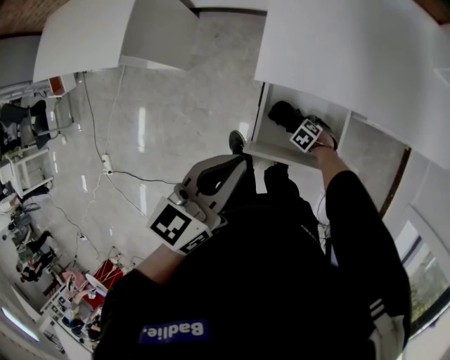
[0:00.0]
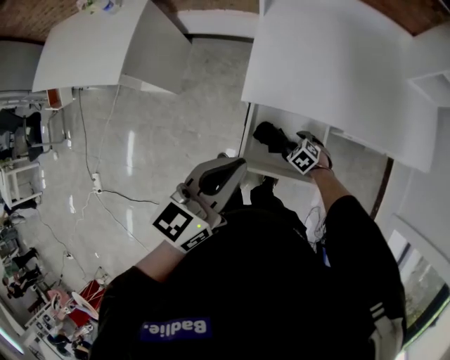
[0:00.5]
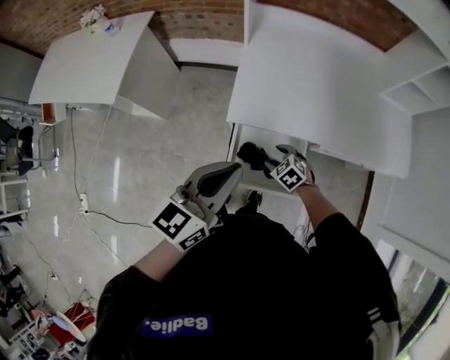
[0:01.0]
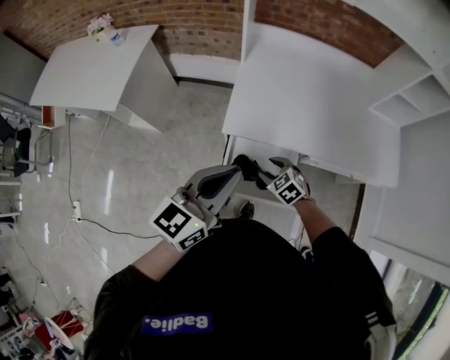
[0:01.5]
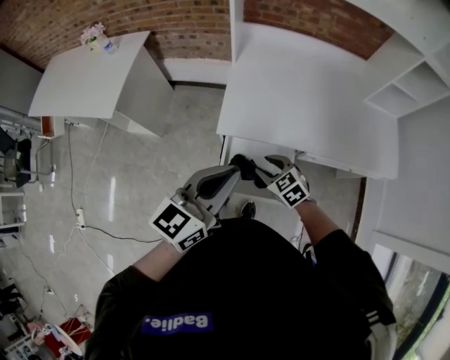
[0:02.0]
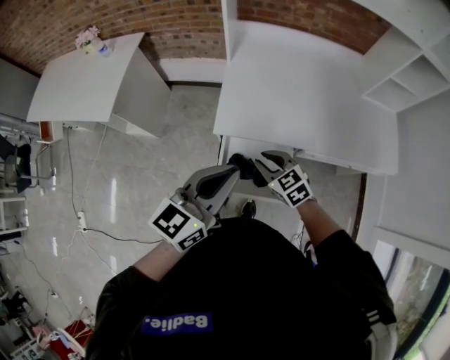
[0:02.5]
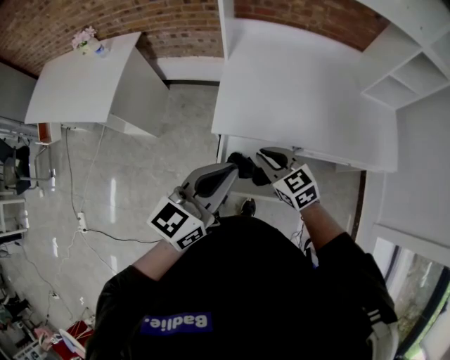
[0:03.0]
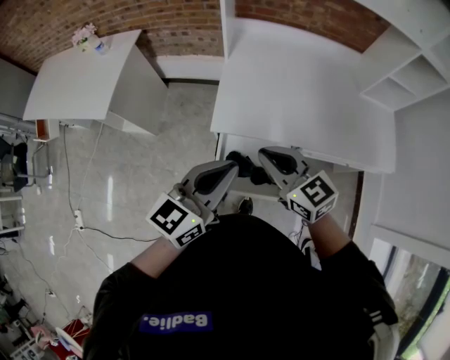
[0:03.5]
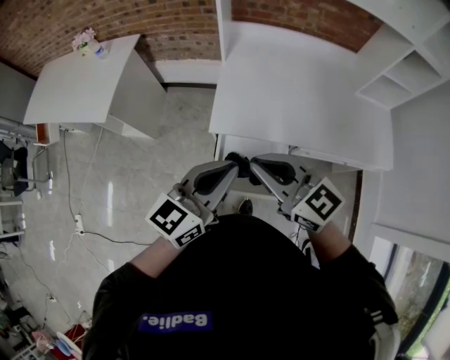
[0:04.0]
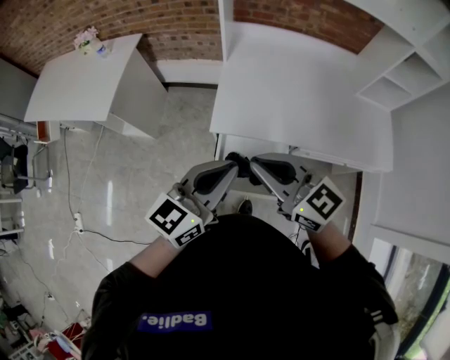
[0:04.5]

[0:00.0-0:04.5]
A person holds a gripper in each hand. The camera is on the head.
0:00.0 to 0:02.0: The left gripper moves upward, about 10 cm. Meanwhile the right gripper heads upward, covering approximately 30 cm, and points its fingers approximately 40 degrees further upward.
0:02.0 to 0:04.5: The right gripper is displaced upward by some 25 cm, tilts its fingers about 40 degrees upward, and closes up.

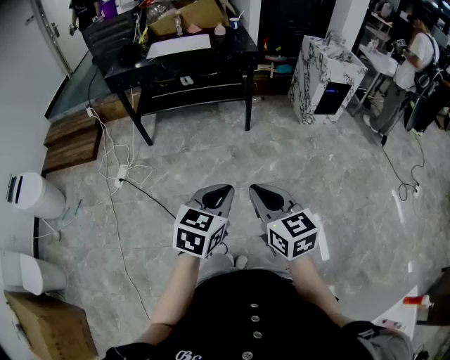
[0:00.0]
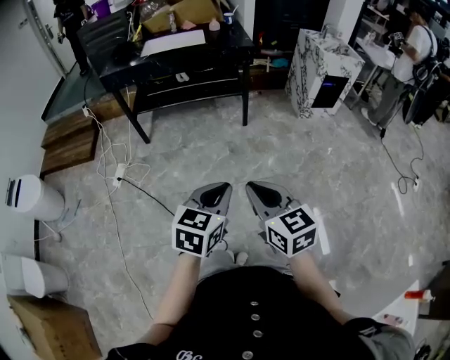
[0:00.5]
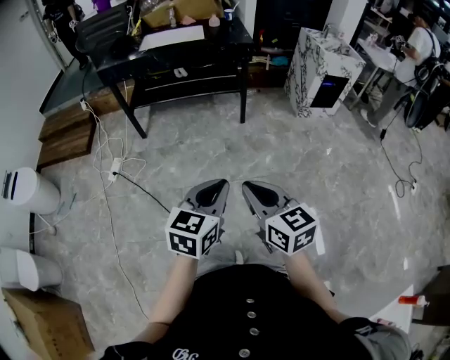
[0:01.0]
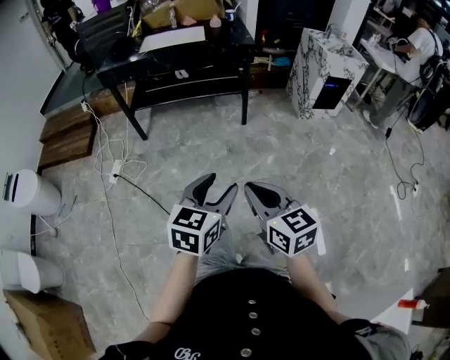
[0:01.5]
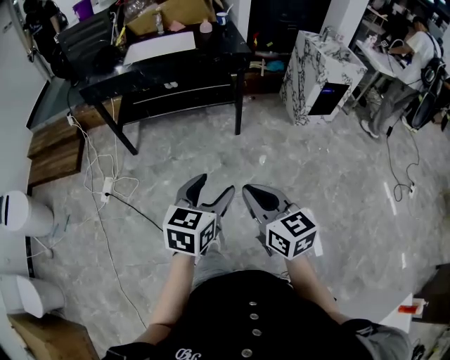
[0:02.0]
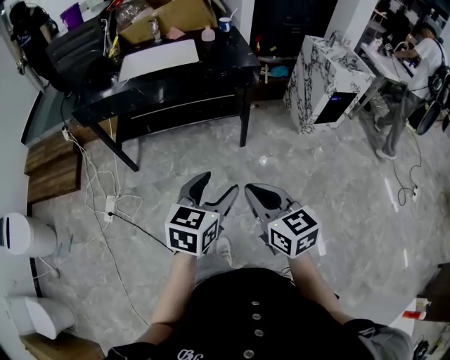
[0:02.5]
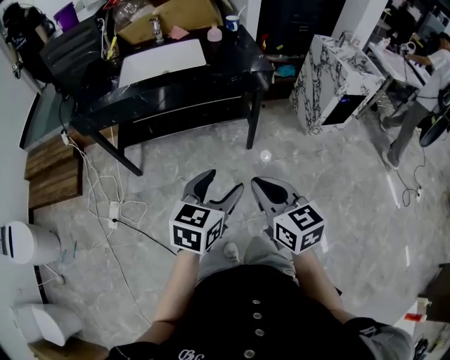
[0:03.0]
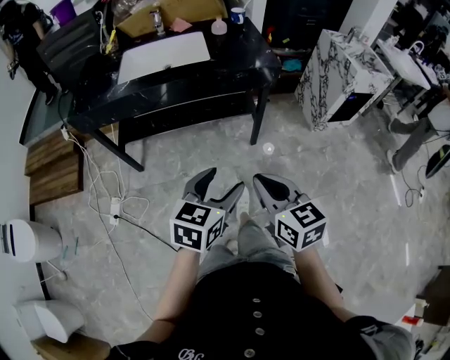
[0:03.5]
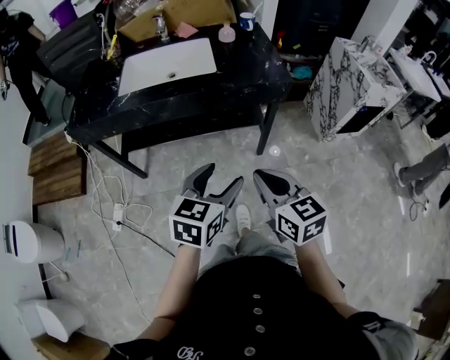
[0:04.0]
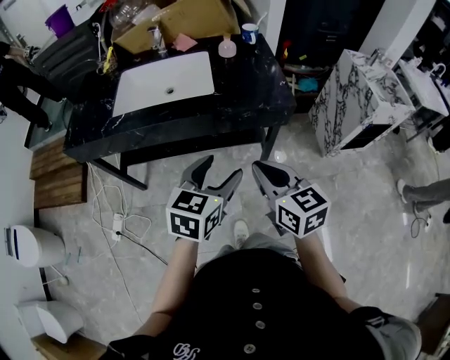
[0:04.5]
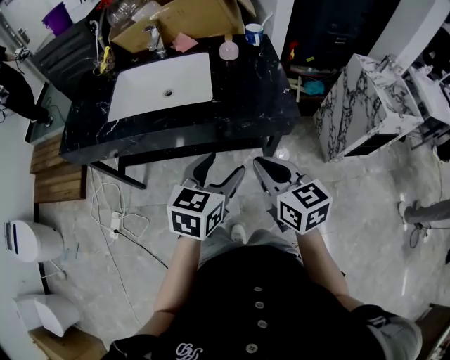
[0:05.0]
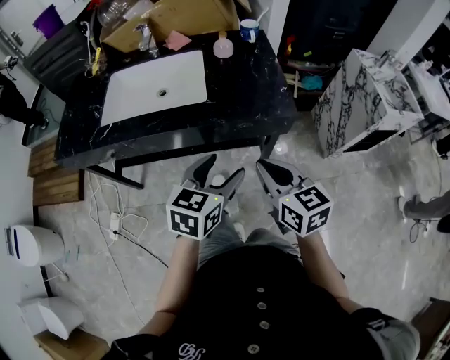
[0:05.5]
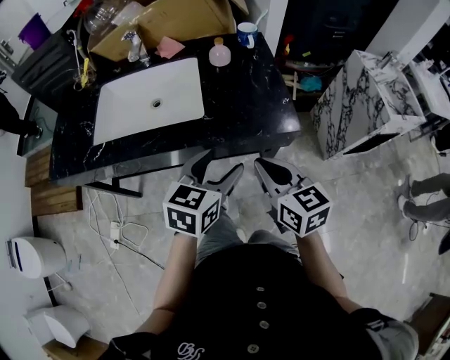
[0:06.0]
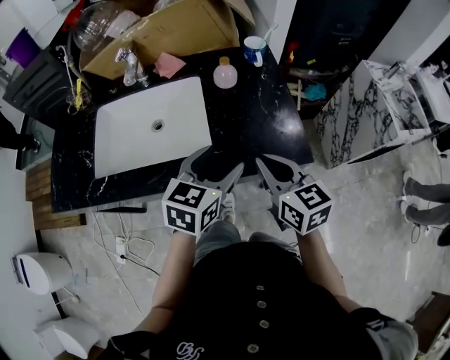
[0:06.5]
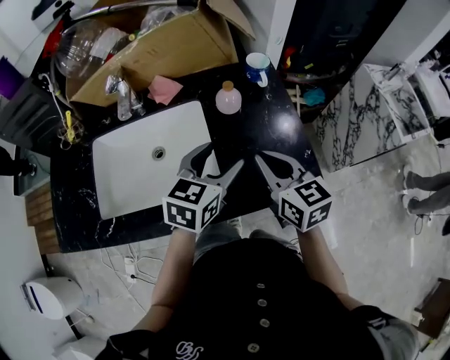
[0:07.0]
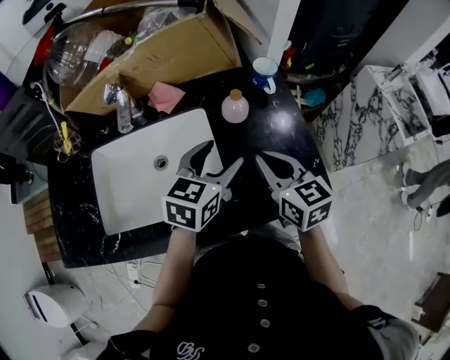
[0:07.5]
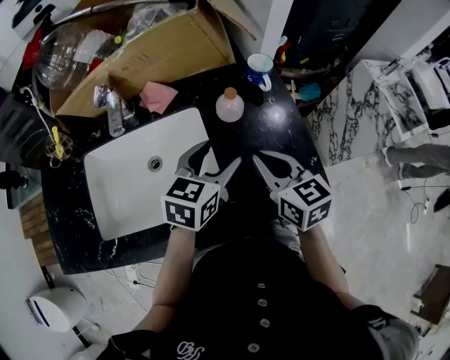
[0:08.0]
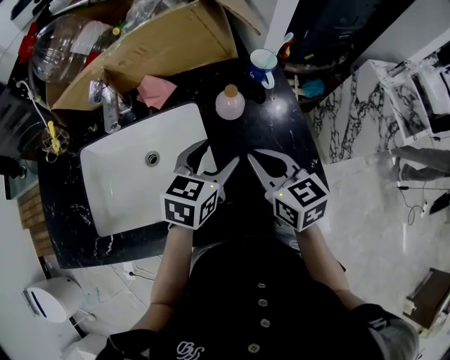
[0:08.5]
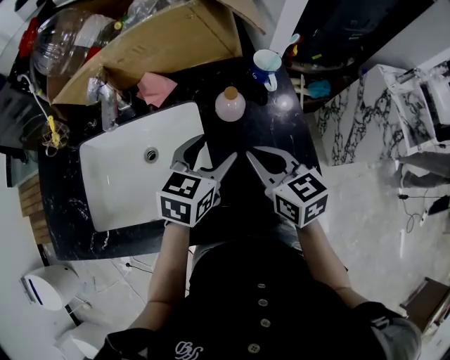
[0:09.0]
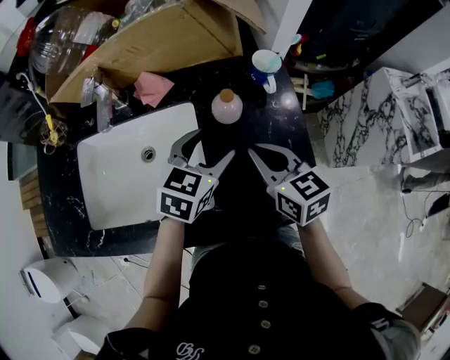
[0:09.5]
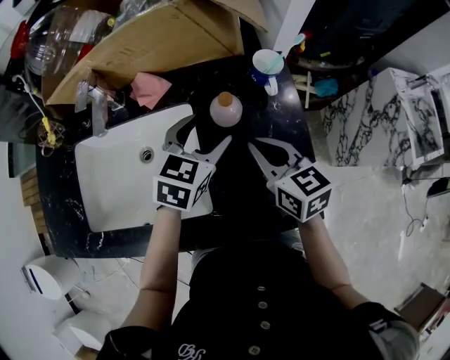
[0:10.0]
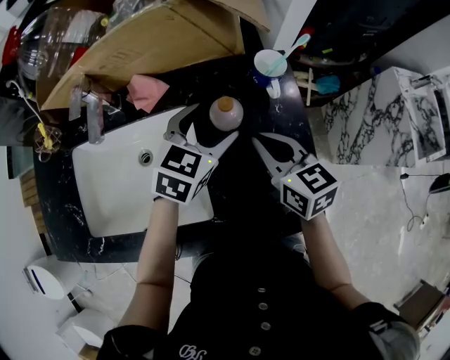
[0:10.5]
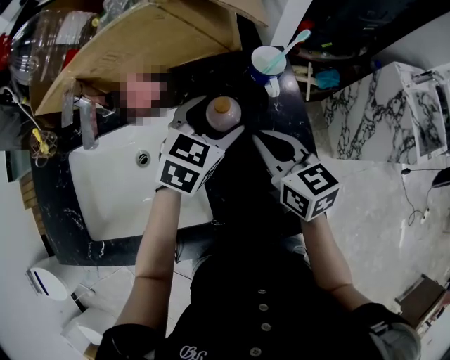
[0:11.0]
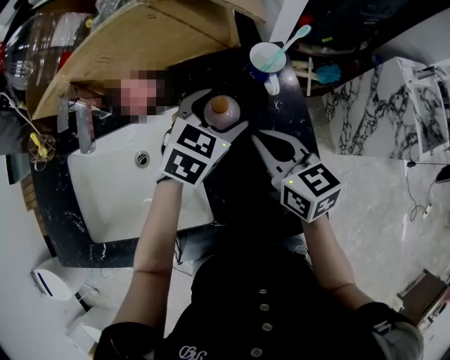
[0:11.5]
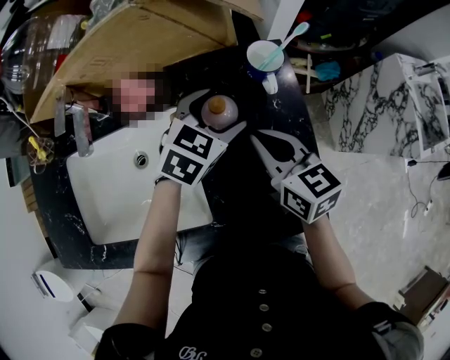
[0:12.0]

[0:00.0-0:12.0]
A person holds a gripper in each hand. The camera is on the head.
0:00.0 to 0:02.0: The grippers both shift forward by roughly 15 cm. The left gripper opens its fingers.
0:02.0 to 0:04.0: Both grippers move forward, some 35 cm.
0:04.0 to 0:06.0: Both grippers travel together forward, some 30 cm.
0:06.0 to 0:08.0: The grippers both shift forward by roughly 25 cm.
0:08.0 to 0:10.0: The grippers both shift forward by about 10 cm.
0:10.0 to 0:12.0: The left gripper travels forward and to the right by about 10 cm.

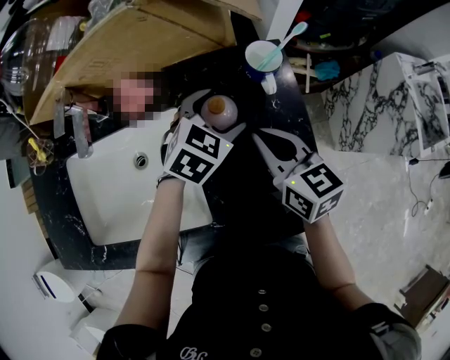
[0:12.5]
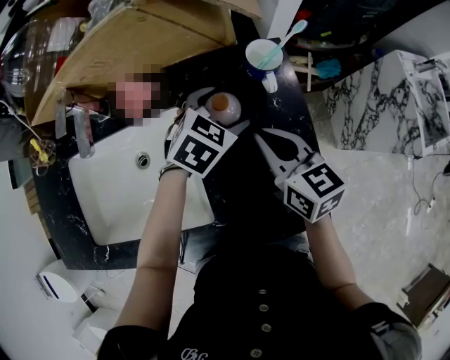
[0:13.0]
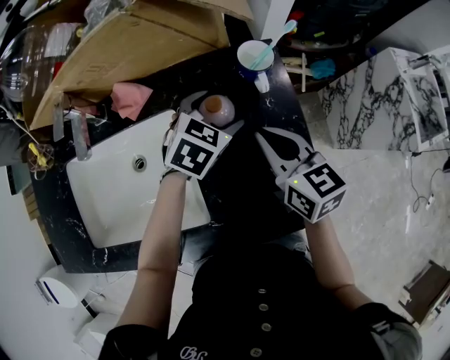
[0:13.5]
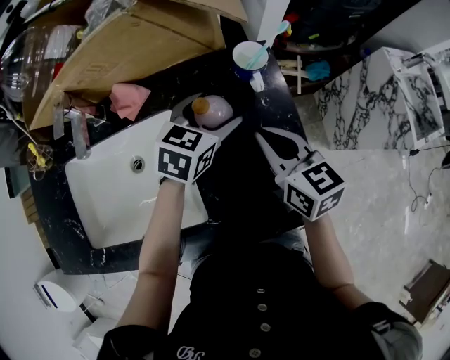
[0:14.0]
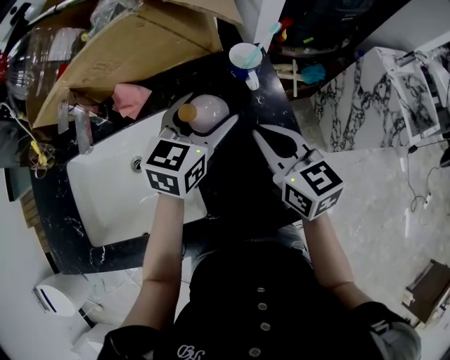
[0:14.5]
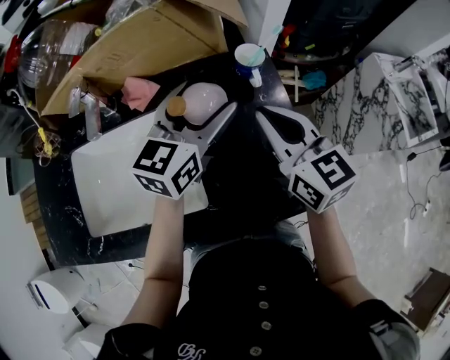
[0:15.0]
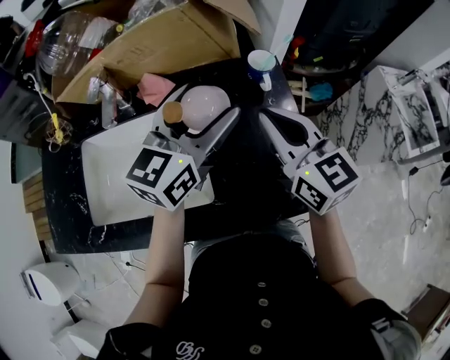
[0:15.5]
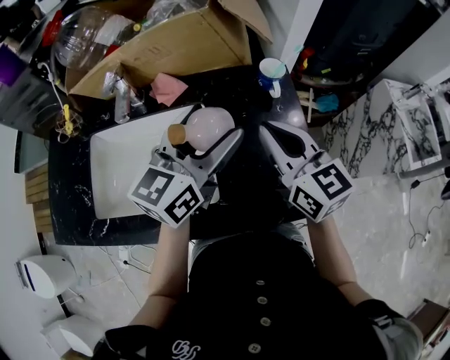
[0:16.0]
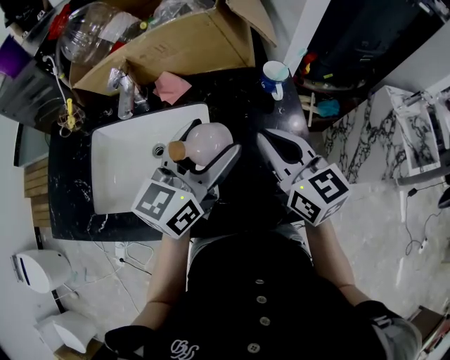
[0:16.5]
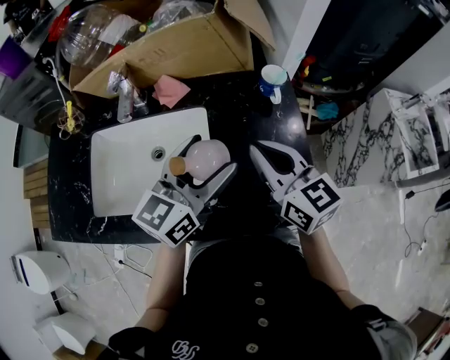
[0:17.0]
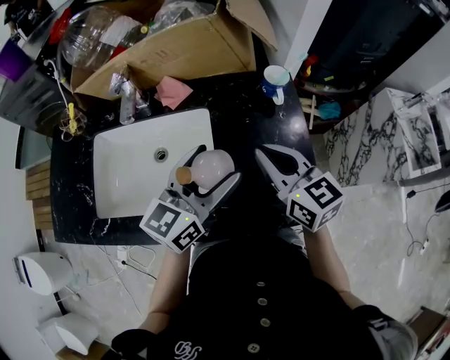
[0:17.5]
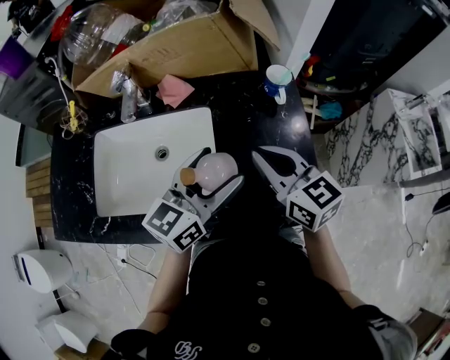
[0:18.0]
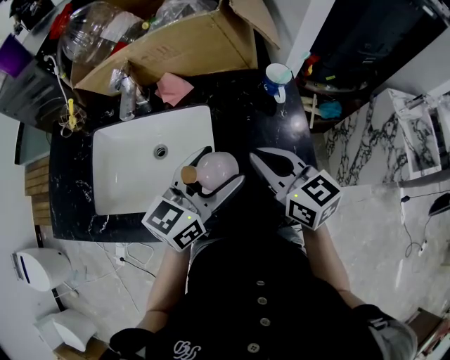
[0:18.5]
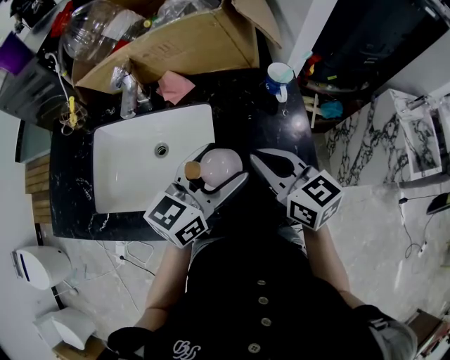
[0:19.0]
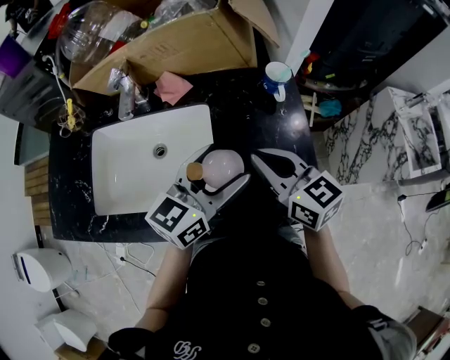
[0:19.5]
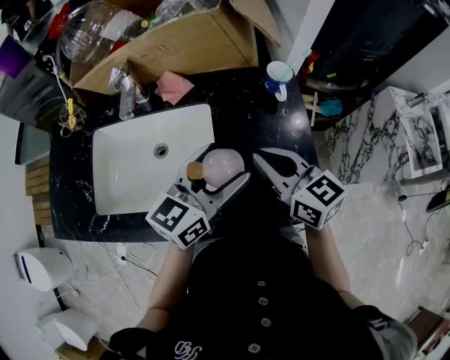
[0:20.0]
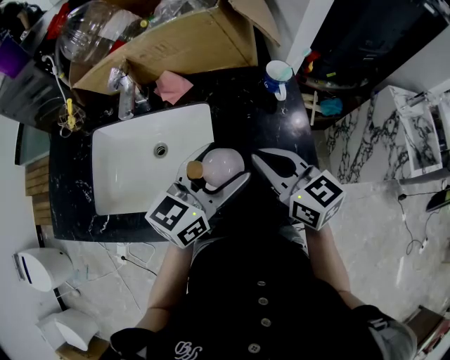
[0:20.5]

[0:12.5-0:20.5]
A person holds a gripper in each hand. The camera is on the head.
0:12.5 to 0:14.5: The left gripper shifts some 10 cm upward, and rotates some 30 degrees, while the right gripper shifts by about 5 cm.
0:14.5 to 0:16.5: The right gripper heads upward and to the left, covering roughly 10 cm. Meanwhile the left gripper travels backward, upward and to the left by about 15 cm, and rotates approximately 20 degrees.
0:16.5 to 0:18.5: The left gripper ends up approximately 5 cm from where it was.
0:18.5 to 0:20.5: Neither gripper changes place.

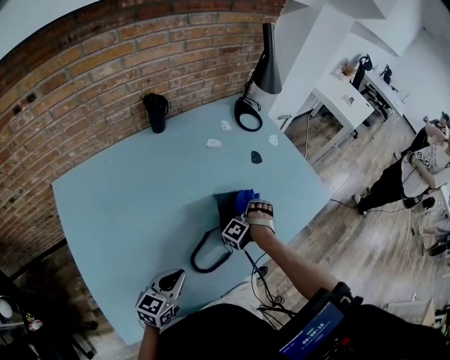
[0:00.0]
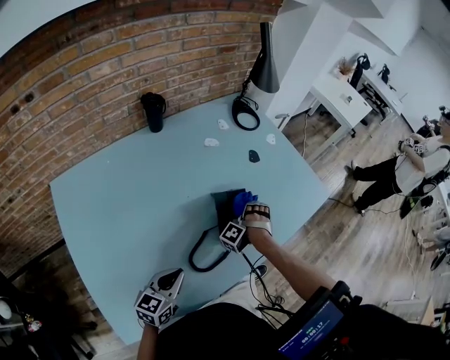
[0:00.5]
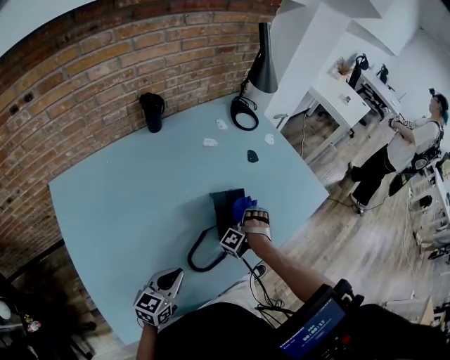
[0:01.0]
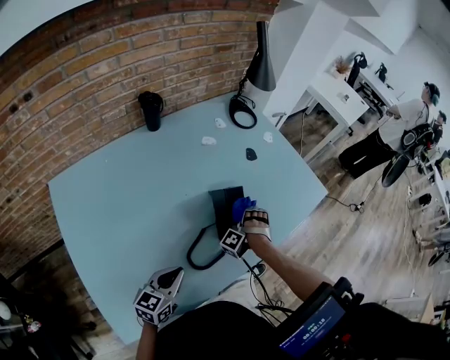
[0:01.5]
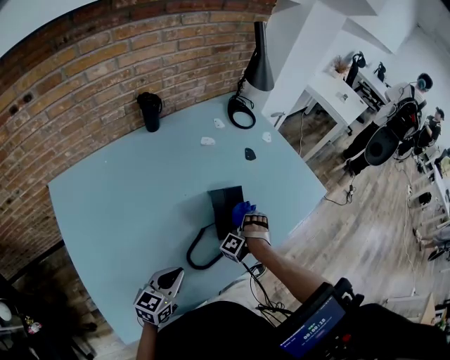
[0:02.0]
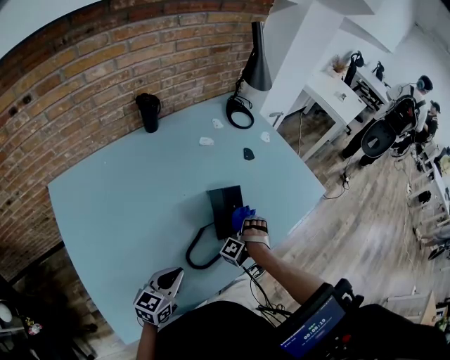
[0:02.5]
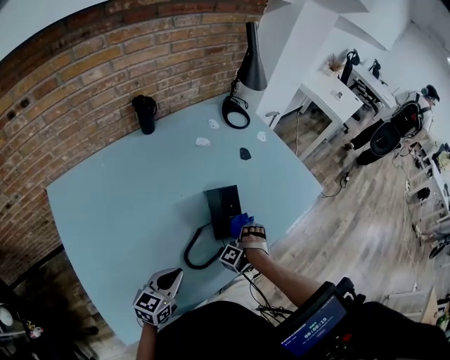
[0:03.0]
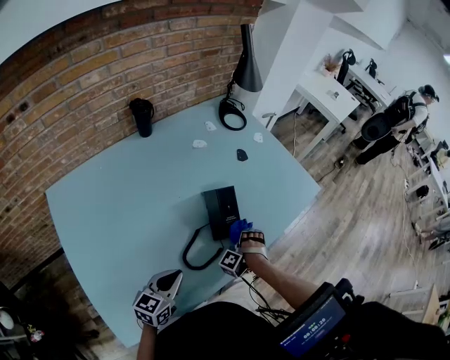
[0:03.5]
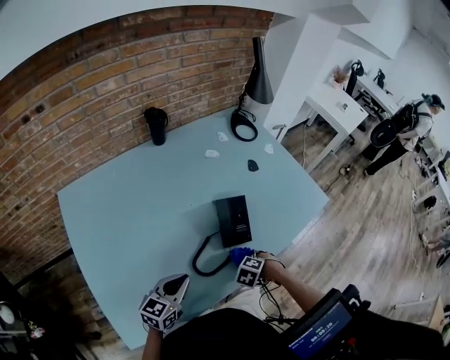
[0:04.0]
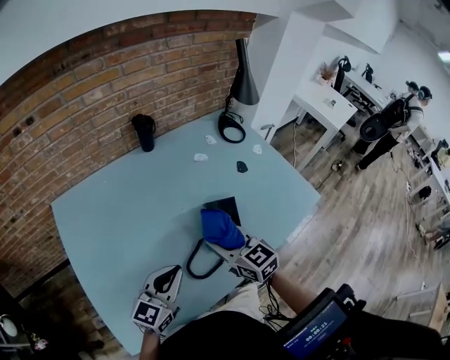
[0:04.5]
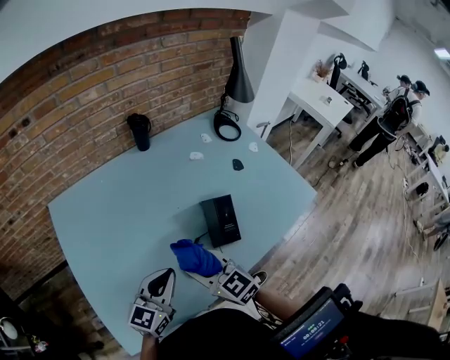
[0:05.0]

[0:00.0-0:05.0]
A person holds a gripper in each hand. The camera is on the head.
0:02.5 to 0:05.0: The left gripper shifts some 10 cm upward.
